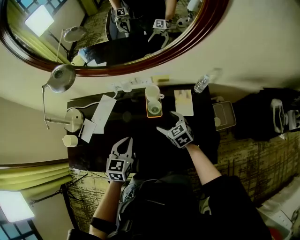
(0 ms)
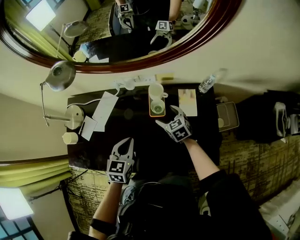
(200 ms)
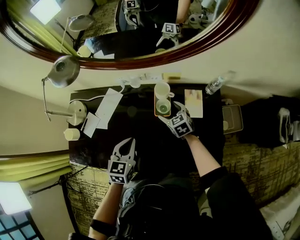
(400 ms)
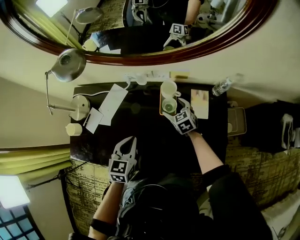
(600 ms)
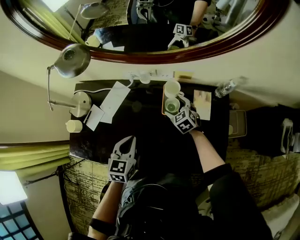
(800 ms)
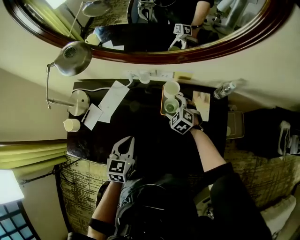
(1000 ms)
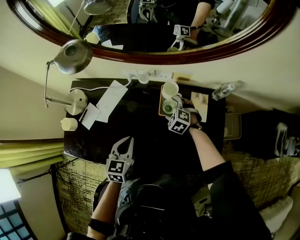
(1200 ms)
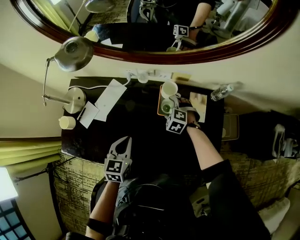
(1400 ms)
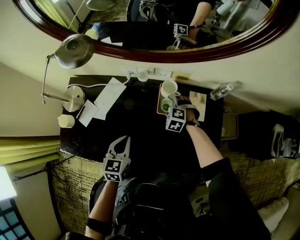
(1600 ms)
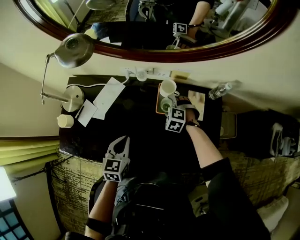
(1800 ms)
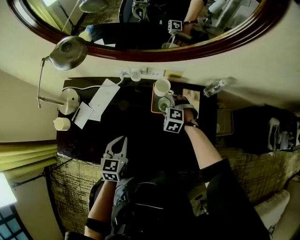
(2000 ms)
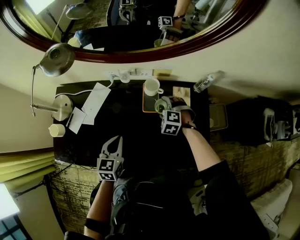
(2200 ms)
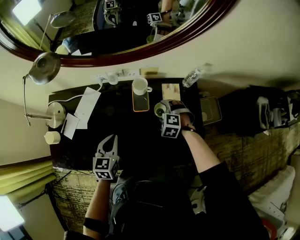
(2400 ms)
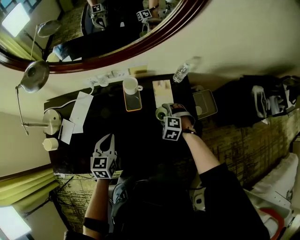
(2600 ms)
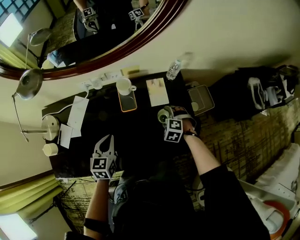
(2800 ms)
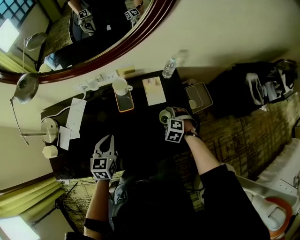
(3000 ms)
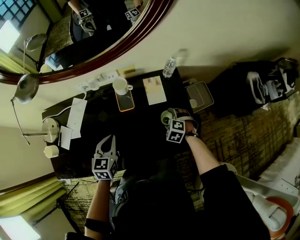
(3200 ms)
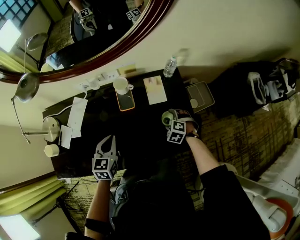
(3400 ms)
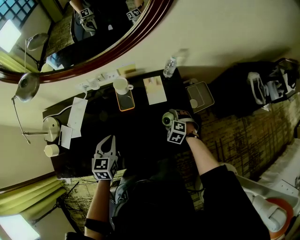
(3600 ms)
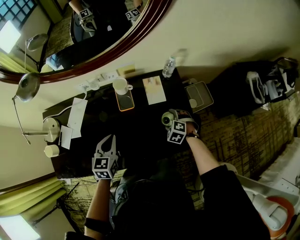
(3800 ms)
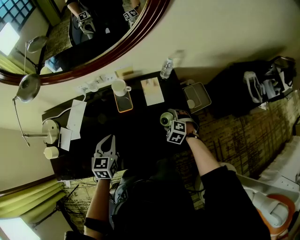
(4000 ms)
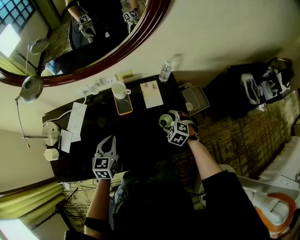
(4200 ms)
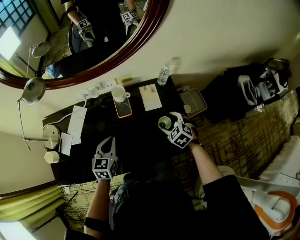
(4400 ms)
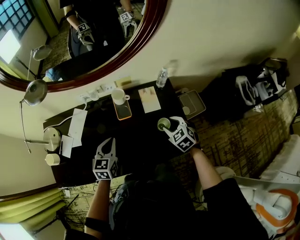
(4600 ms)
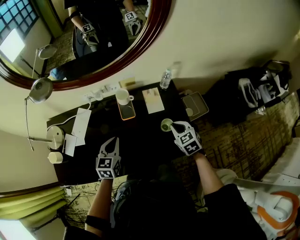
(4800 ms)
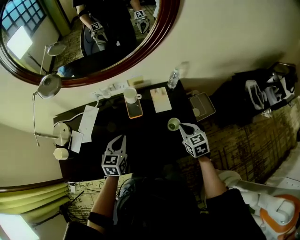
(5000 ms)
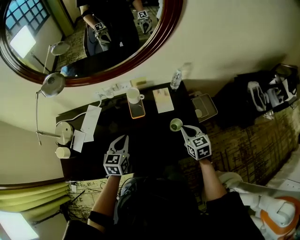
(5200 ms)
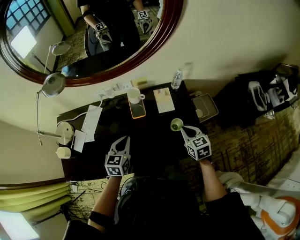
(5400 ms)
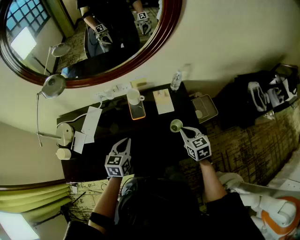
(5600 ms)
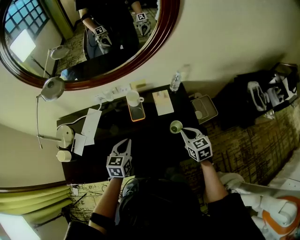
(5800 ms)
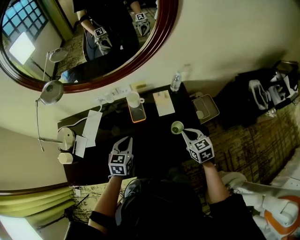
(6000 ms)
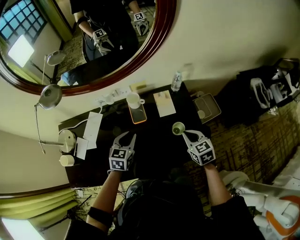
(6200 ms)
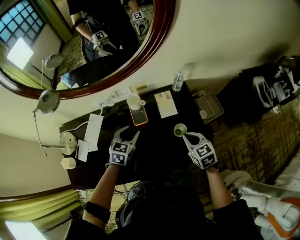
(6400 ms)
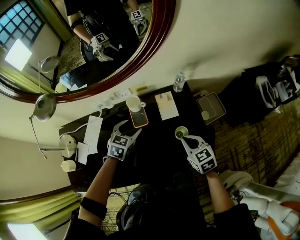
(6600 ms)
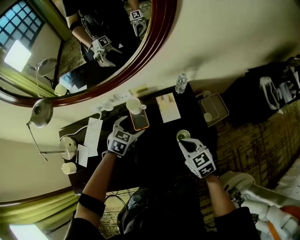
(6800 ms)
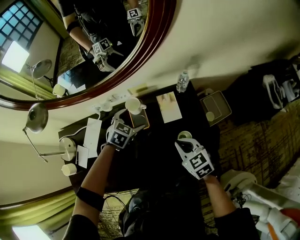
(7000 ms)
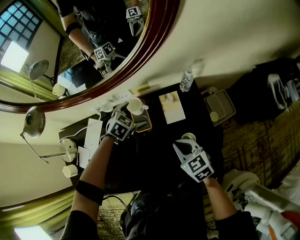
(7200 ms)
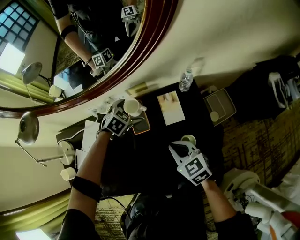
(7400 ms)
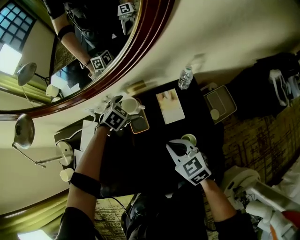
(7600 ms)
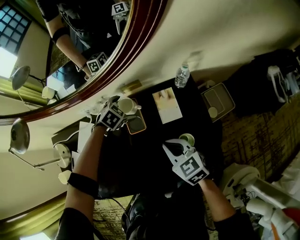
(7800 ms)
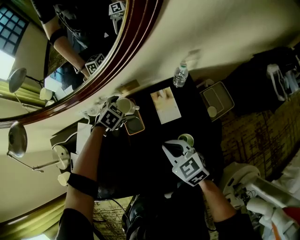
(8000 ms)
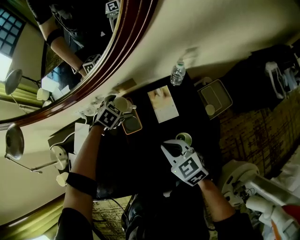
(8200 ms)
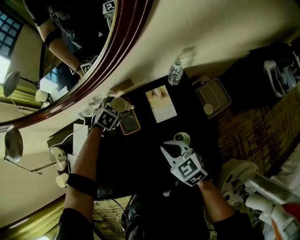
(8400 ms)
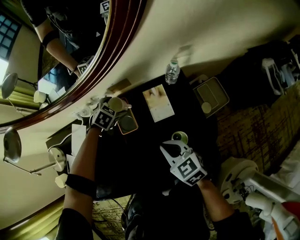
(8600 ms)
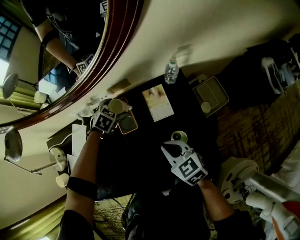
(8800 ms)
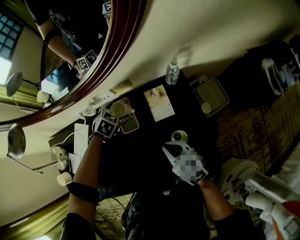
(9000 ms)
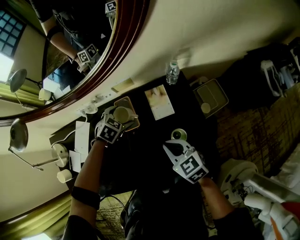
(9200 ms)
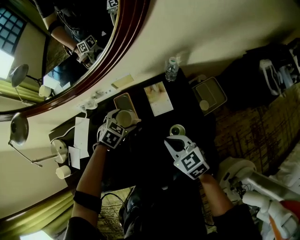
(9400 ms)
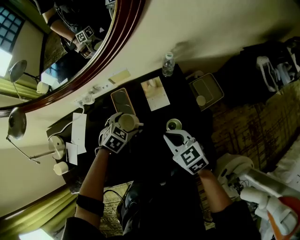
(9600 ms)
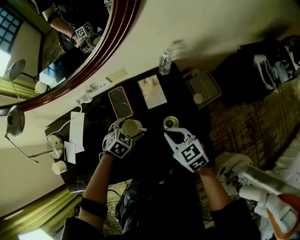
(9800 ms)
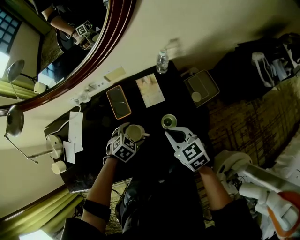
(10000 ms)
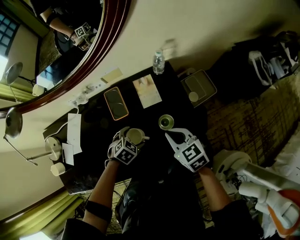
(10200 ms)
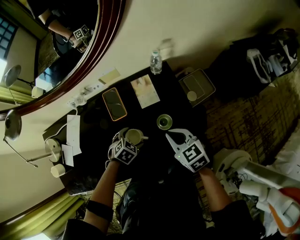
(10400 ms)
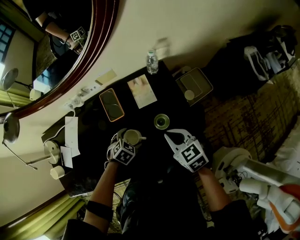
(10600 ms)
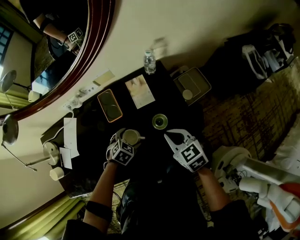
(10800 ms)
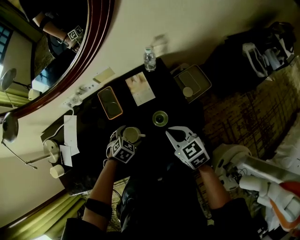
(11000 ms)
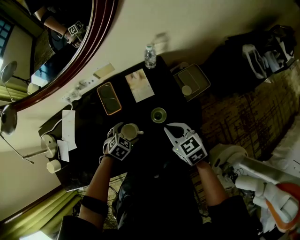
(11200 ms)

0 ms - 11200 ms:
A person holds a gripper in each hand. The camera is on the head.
0 ms - 1600 ms: The left gripper goes about 5 cm to the left. The right gripper shifts approximately 10 cm forward and downward, and rolls counterclockwise, seen from behind, by about 50 degrees.
1600 ms - 3200 ms: The left gripper heads to the right, covering about 10 cm, while the right gripper travels to the right and backward by approximately 25 cm, and swivels roughly 20 degrees.
3200 ms - 4800 ms: The right gripper goes some 15 cm upward, changes its angle by some 50 degrees, and closes up.
4800 ms - 6400 ms: The left gripper heads forward, covering roughly 10 cm.
6400 ms - 8000 ms: The right gripper travels to the left and forward by about 10 cm; the left gripper travels forward and downward by roughly 25 cm, turns by approximately 40 degrees, and opens its fingers.
8000 ms - 9600 ms: The right gripper changes place by some 5 cm, while the left gripper goes approximately 15 cm backward.
9600 ms - 11200 ms: The left gripper moves backward, downward and to the right, approximately 15 cm. Meanwhile the right gripper shifts roughly 5 cm to the right.

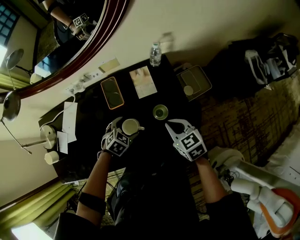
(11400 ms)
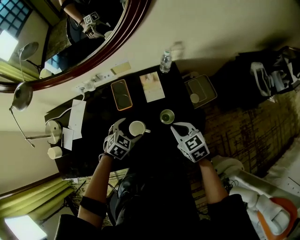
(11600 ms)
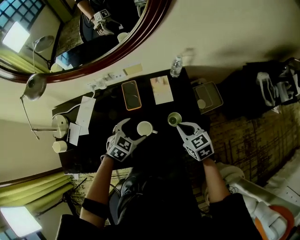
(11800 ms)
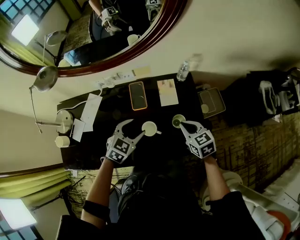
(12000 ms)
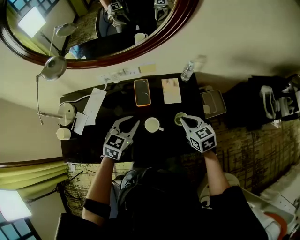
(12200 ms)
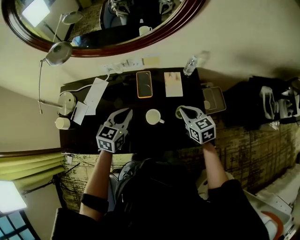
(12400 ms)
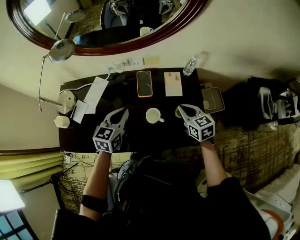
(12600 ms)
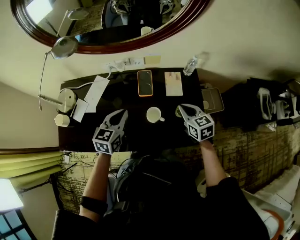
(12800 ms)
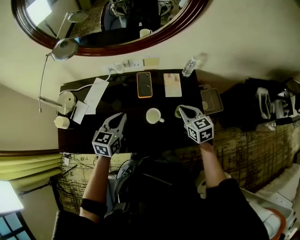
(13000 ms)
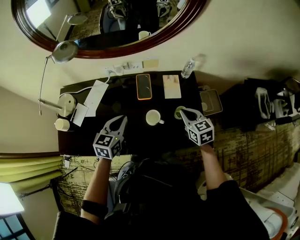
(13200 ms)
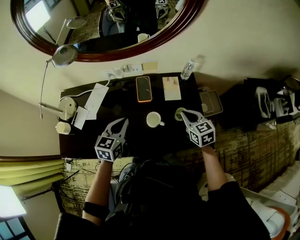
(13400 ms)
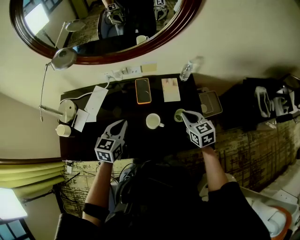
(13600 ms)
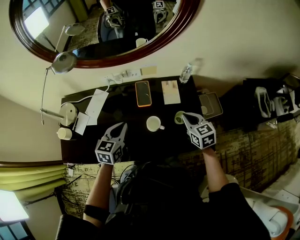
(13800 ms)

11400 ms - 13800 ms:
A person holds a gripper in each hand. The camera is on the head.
11400 ms - 12600 ms: The left gripper goes about 25 cm upward and to the left, tilts its fingers roughly 40 degrees upward, and closes its fingers, while the right gripper heads to the left and upward, covering approximately 5 cm.
12600 ms - 13800 ms: The grippers move only a little.

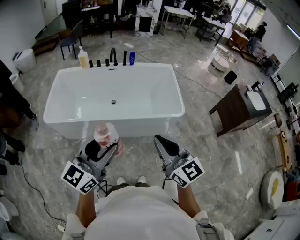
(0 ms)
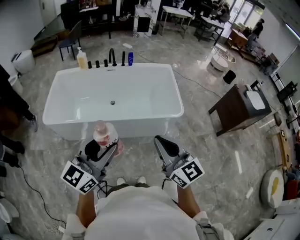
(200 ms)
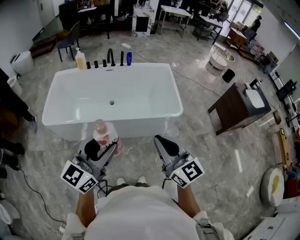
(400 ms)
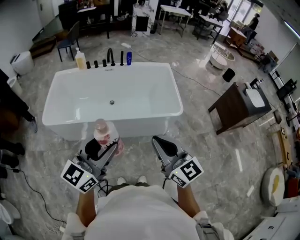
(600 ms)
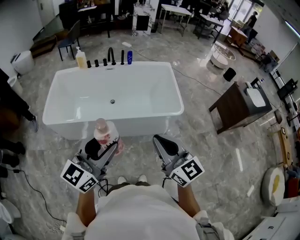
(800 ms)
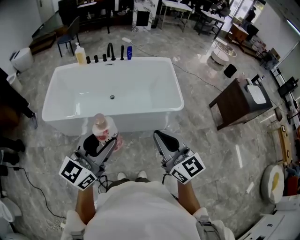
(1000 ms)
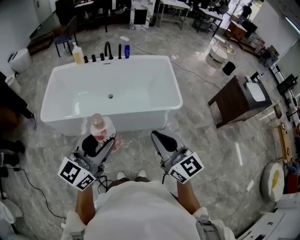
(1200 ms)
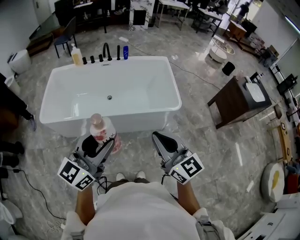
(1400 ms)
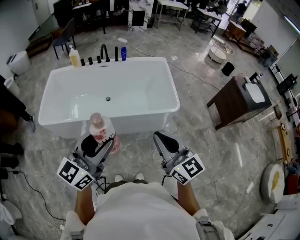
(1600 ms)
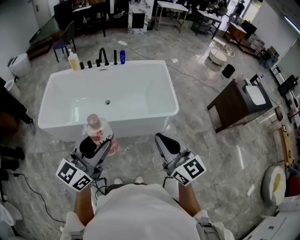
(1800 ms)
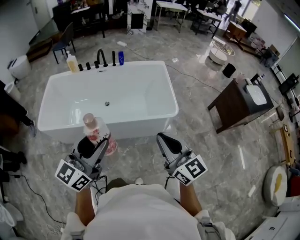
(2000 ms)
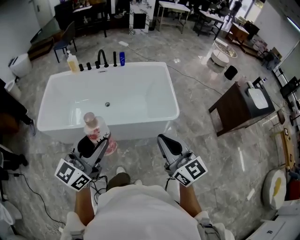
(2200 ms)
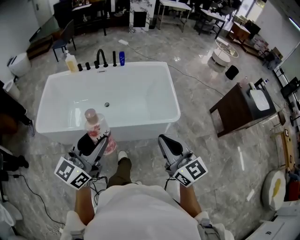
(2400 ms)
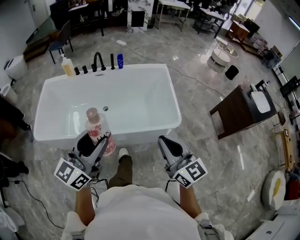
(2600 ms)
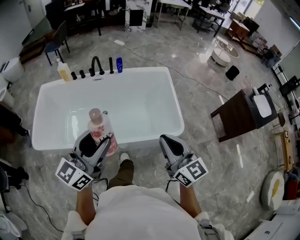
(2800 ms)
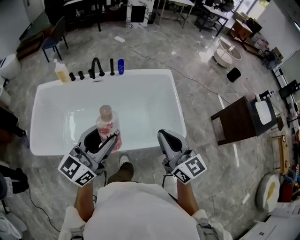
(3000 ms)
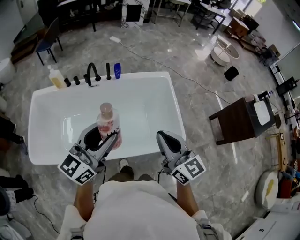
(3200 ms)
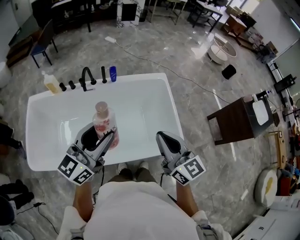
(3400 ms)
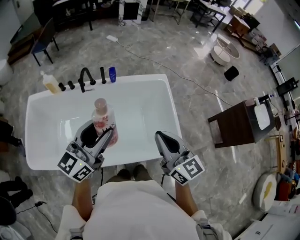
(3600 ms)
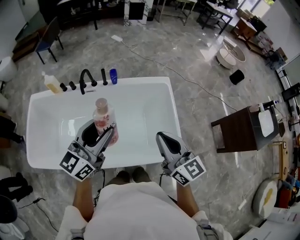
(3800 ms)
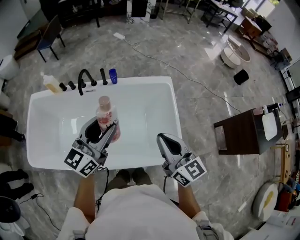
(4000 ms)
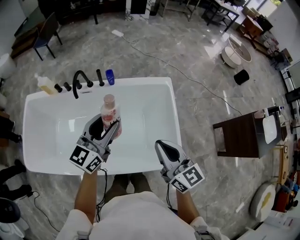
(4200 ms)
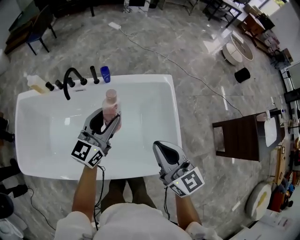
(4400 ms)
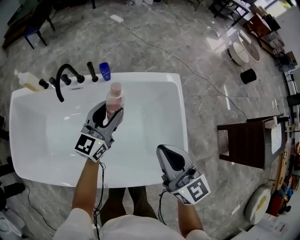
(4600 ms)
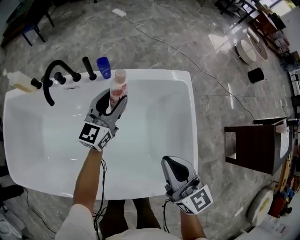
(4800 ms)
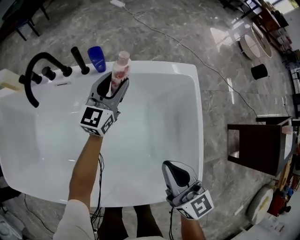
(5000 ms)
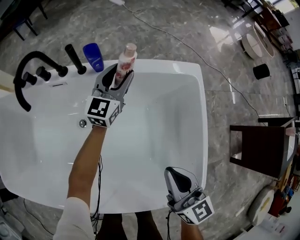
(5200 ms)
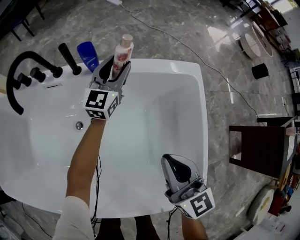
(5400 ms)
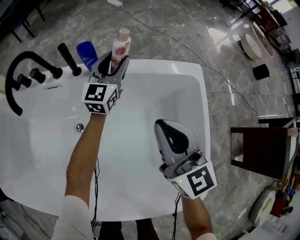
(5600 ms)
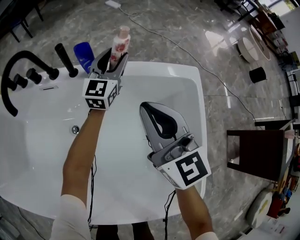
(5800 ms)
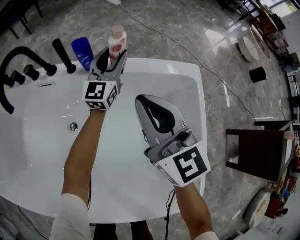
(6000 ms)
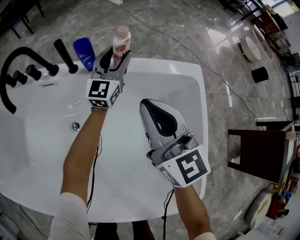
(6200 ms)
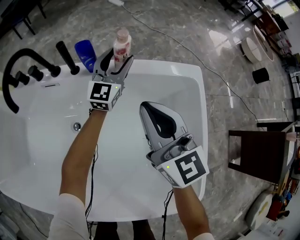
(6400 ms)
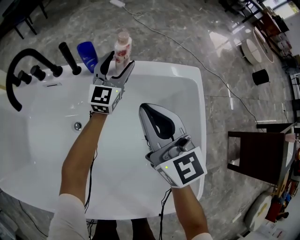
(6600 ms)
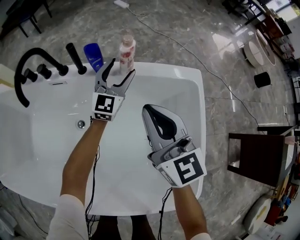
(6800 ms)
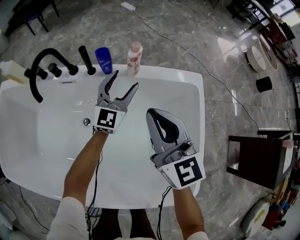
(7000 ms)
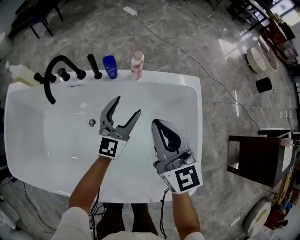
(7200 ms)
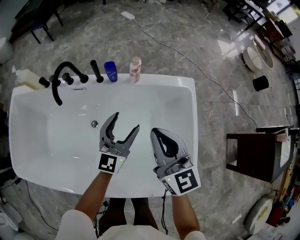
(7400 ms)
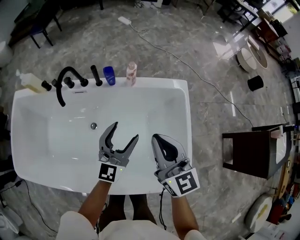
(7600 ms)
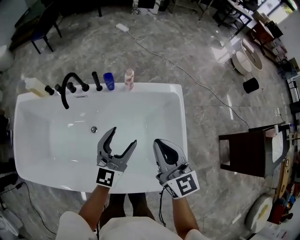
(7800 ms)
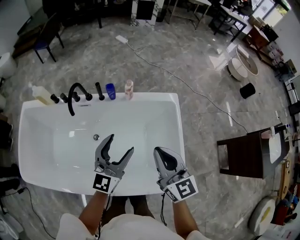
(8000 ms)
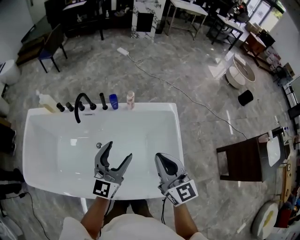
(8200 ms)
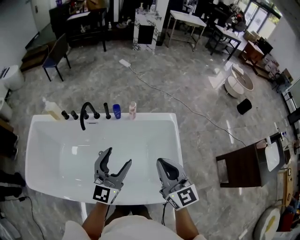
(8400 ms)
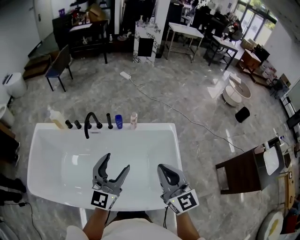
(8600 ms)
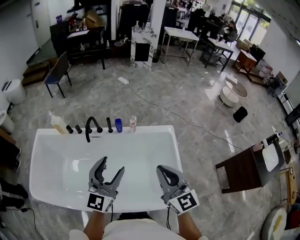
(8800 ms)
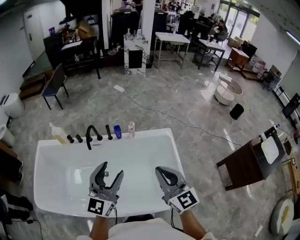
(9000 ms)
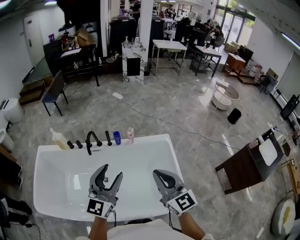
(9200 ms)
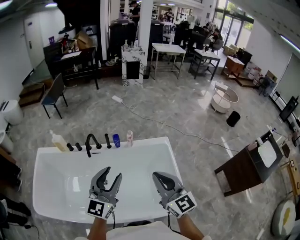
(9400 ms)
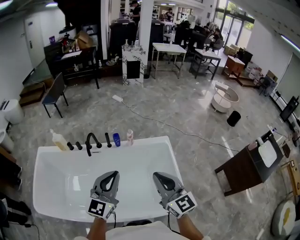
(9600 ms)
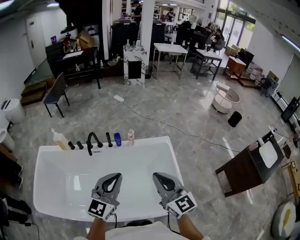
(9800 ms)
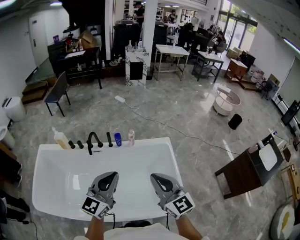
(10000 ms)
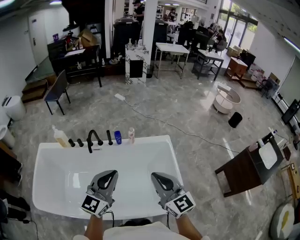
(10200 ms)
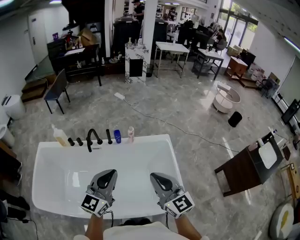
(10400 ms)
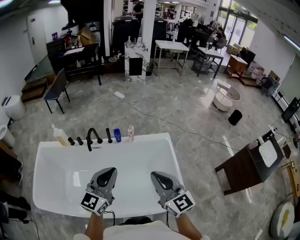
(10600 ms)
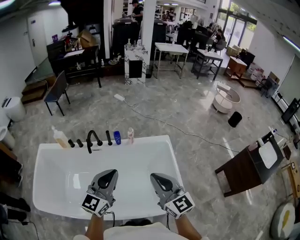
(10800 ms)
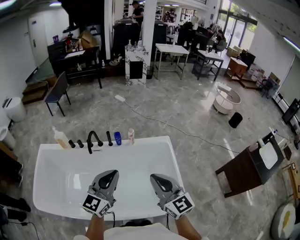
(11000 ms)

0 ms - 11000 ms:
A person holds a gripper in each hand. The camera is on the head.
0 ms - 1600 ms: The left gripper shifts by about 5 cm, while the right gripper shifts roughly 5 cm to the right.
1600 ms - 3200 ms: The two grippers travel together, forward, roughly 40 cm.
3200 ms - 4800 ms: The left gripper is displaced forward and downward by approximately 60 cm. Meanwhile the right gripper is displaced forward and downward by roughly 40 cm.
4800 ms - 6200 ms: Both grippers travel together forward and downward, about 25 cm.
6200 ms - 7800 ms: The right gripper is displaced upward and backward by about 30 cm. The left gripper shifts roughly 40 cm backward and upward.
7800 ms - 9400 ms: Both grippers travel together upward and backward, about 25 cm. The left gripper closes its fingers.
9400 ms - 11000 ms: The left gripper closes its fingers.
